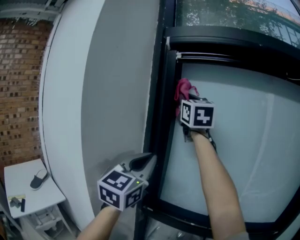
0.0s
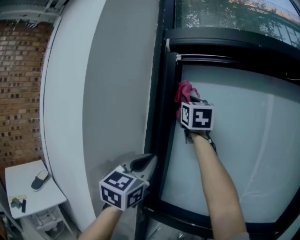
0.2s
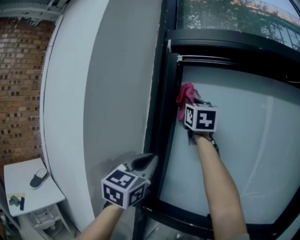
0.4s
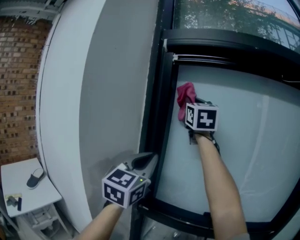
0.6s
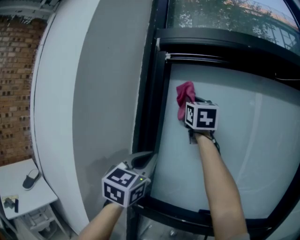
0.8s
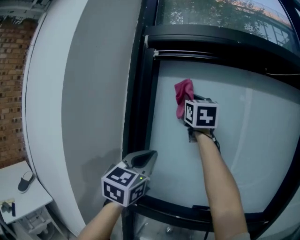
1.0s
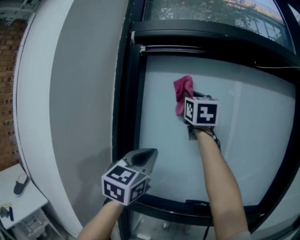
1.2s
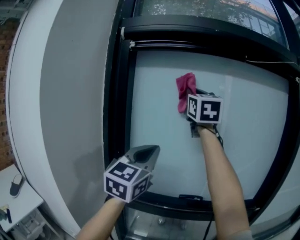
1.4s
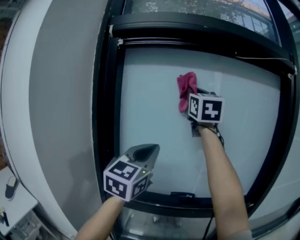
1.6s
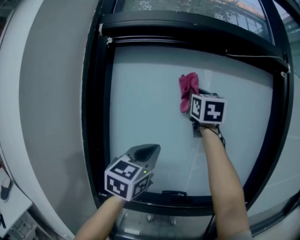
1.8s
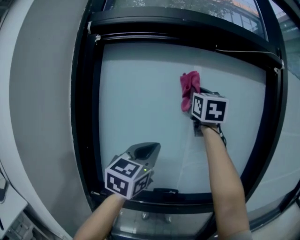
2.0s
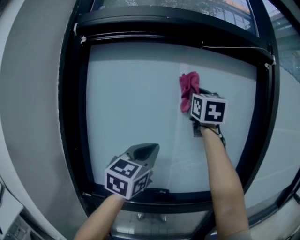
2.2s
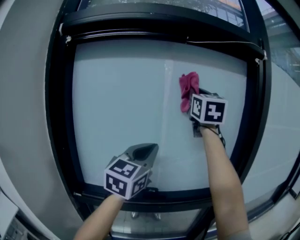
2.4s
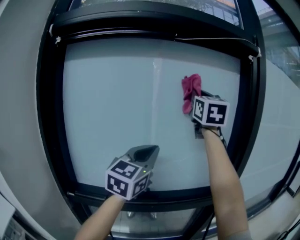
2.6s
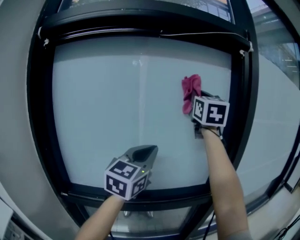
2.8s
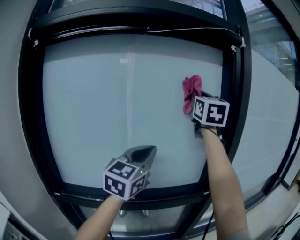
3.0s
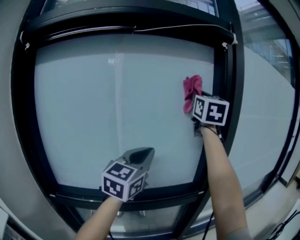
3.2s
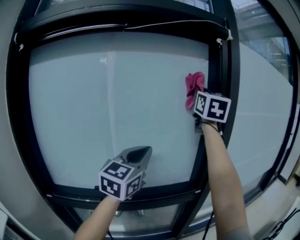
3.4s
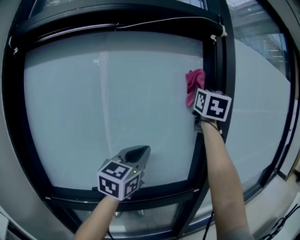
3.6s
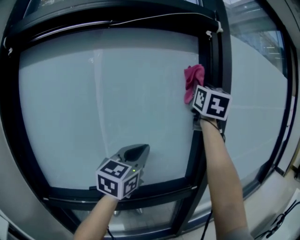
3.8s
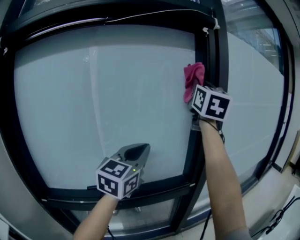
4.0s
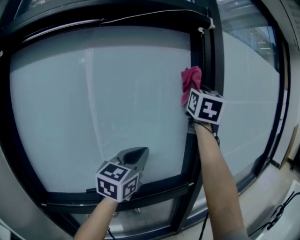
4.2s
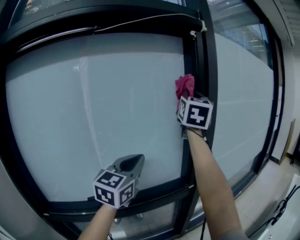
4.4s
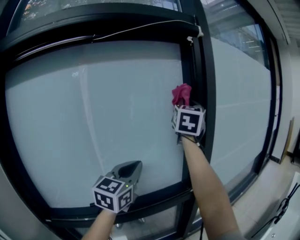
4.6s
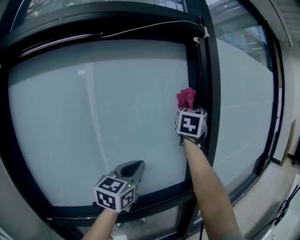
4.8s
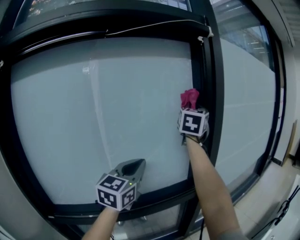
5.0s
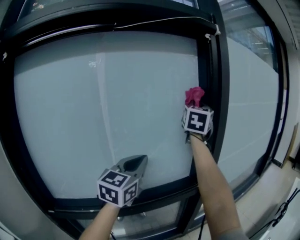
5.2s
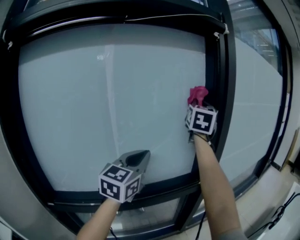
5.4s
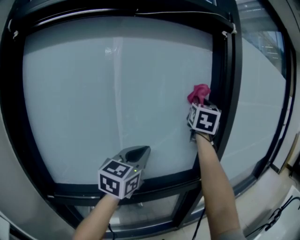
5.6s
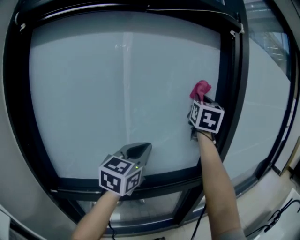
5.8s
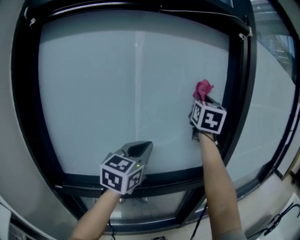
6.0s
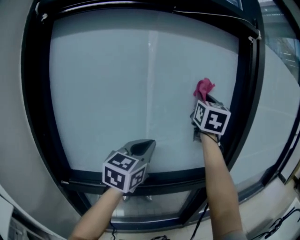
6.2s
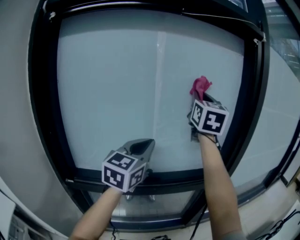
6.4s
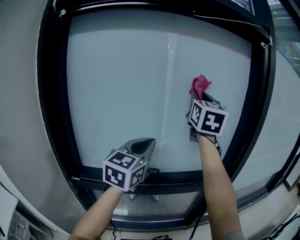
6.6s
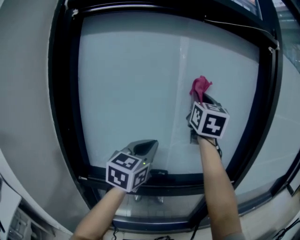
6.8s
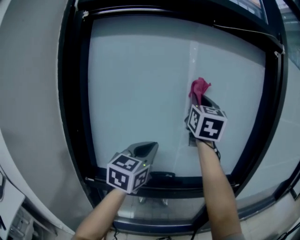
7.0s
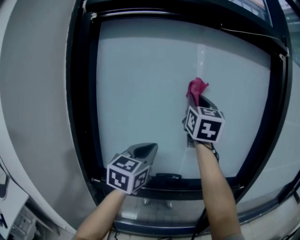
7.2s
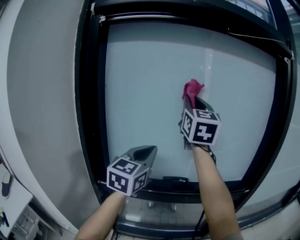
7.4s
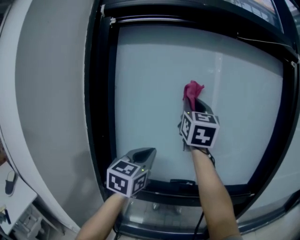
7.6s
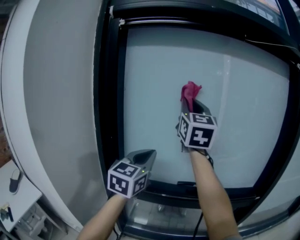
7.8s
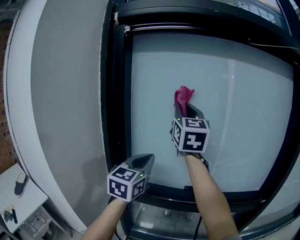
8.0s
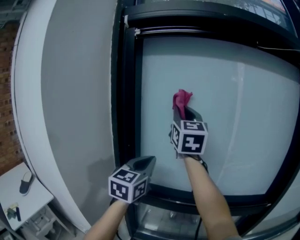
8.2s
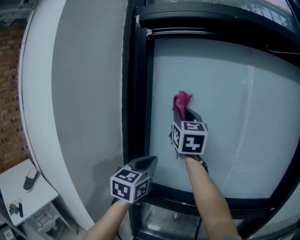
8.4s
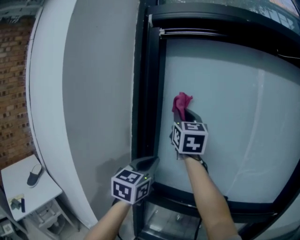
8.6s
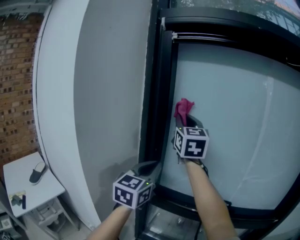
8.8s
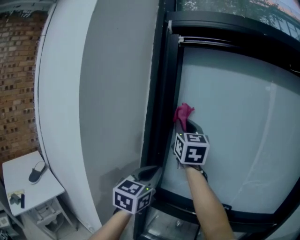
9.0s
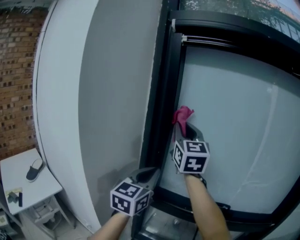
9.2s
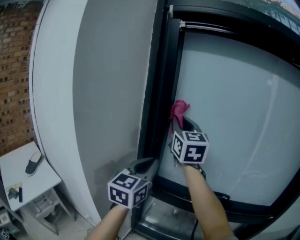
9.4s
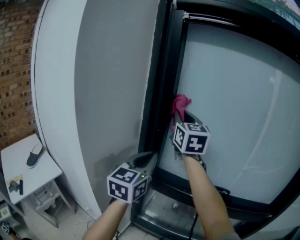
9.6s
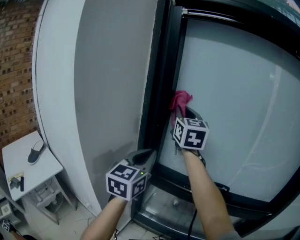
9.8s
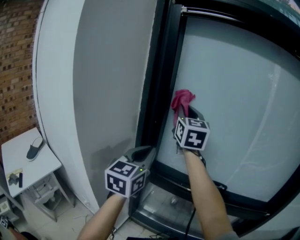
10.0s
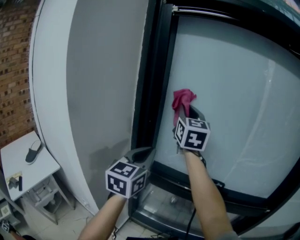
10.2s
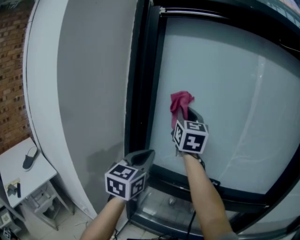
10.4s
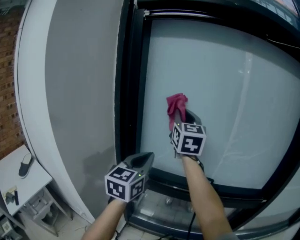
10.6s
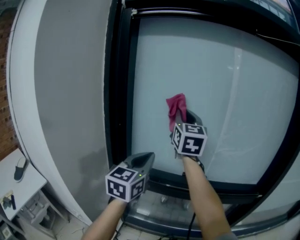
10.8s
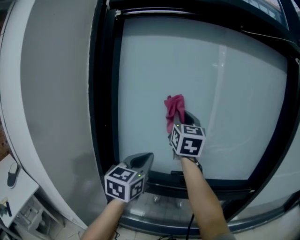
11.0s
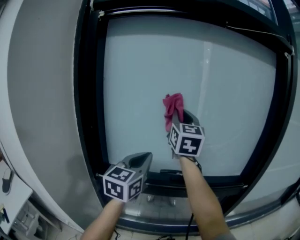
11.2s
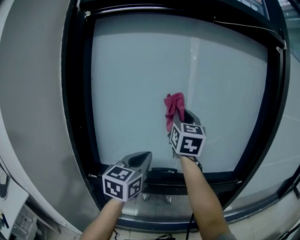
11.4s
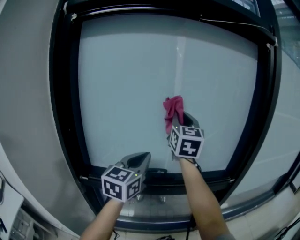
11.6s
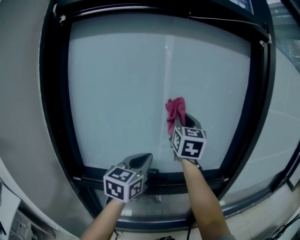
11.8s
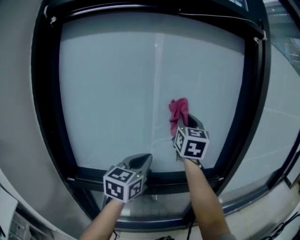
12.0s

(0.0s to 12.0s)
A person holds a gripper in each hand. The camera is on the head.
0.0s - 1.6s: The two grippers go about 20 cm to the right. The right gripper changes its angle by roughly 20 degrees.
1.6s - 3.0s: Both grippers move to the right, roughly 30 cm. The right gripper turns by roughly 20 degrees.
3.0s - 4.4s: The left gripper shifts approximately 5 cm to the right. Meanwhile the right gripper is displaced to the right by approximately 10 cm, and changes its angle by about 20 degrees.
4.4s - 6.0s: The right gripper heads to the left and downward, covering approximately 15 cm. The left gripper shifts approximately 10 cm to the left and backward.
6.0s - 7.6s: The left gripper shifts by some 25 cm, and changes its angle by roughly 20 degrees. The right gripper ends up about 35 cm from where it was, and turns by approximately 30 degrees.
7.6s - 9.0s: Both grippers move to the left, about 20 cm. The right gripper turns by some 20 degrees.
9.0s - 10.4s: The right gripper travels to the right and downward by roughly 10 cm, while the left gripper moves some 5 cm.
10.4s - 12.0s: The left gripper moves roughly 30 cm, and rotates approximately 30 degrees. The right gripper moves some 40 cm, and swivels approximately 30 degrees.

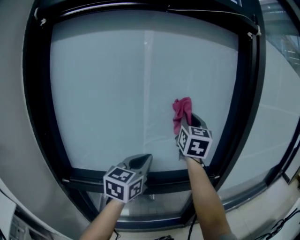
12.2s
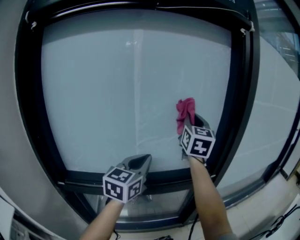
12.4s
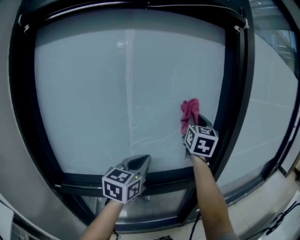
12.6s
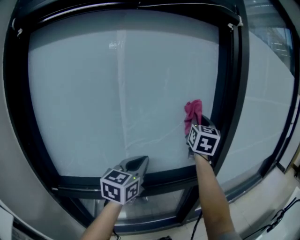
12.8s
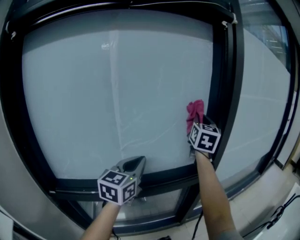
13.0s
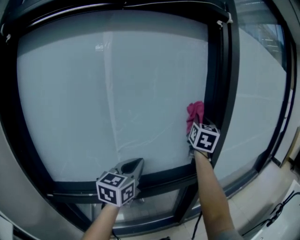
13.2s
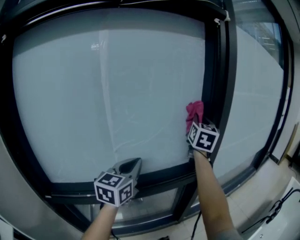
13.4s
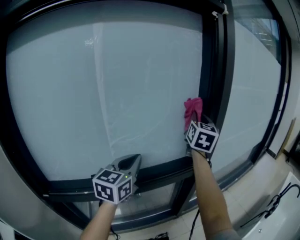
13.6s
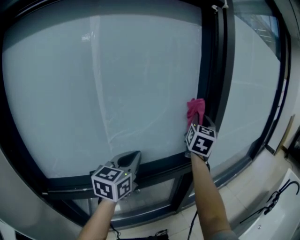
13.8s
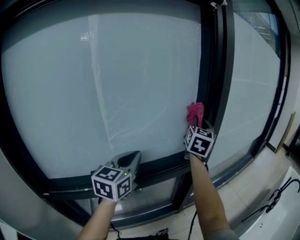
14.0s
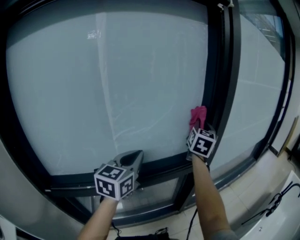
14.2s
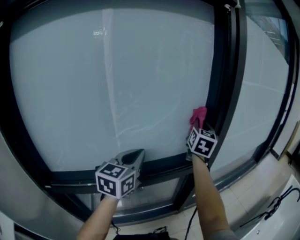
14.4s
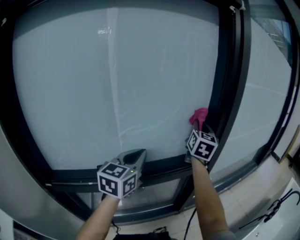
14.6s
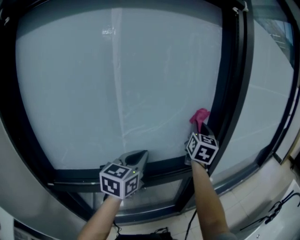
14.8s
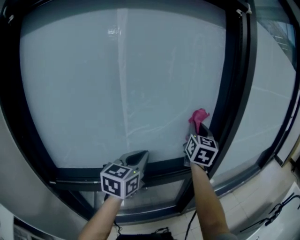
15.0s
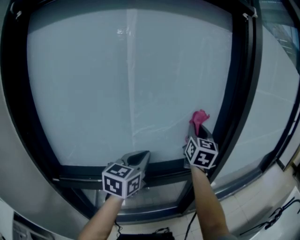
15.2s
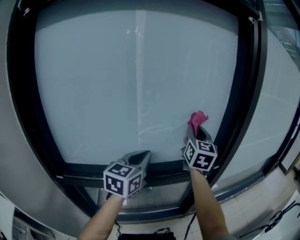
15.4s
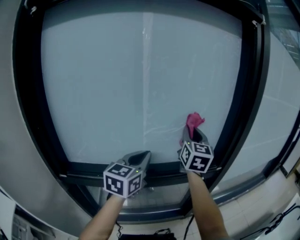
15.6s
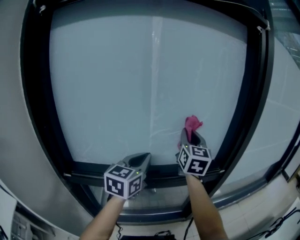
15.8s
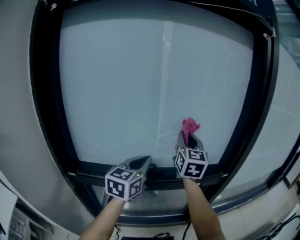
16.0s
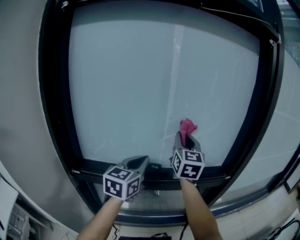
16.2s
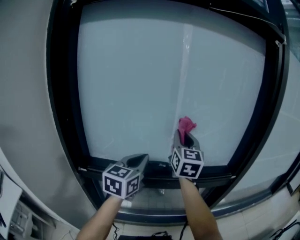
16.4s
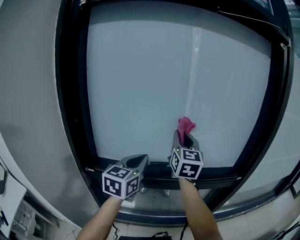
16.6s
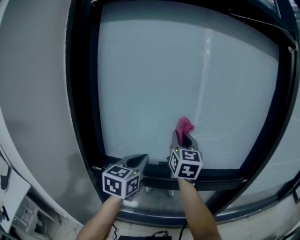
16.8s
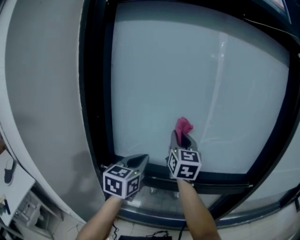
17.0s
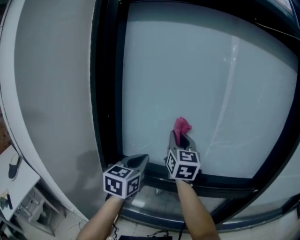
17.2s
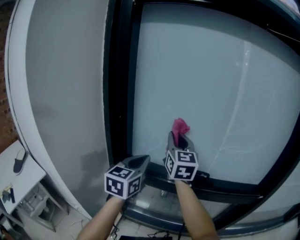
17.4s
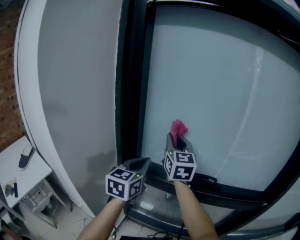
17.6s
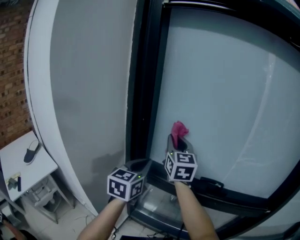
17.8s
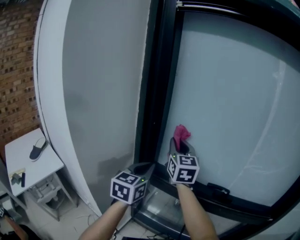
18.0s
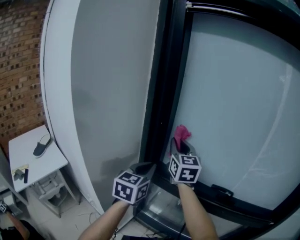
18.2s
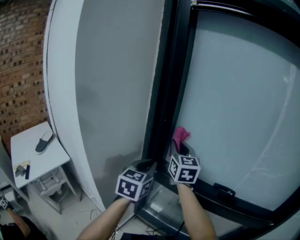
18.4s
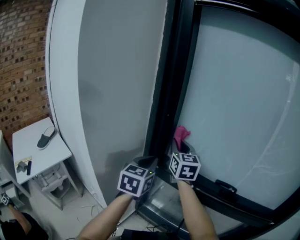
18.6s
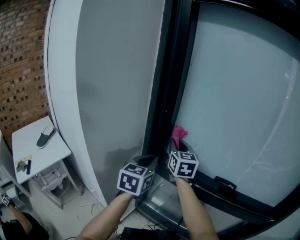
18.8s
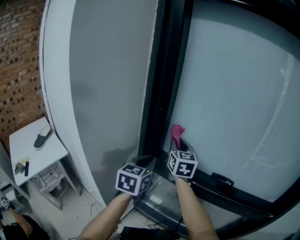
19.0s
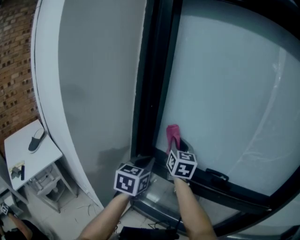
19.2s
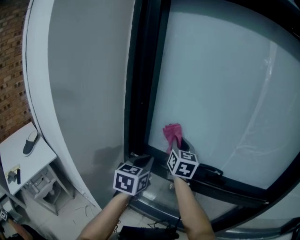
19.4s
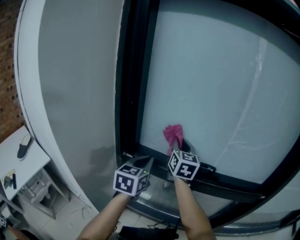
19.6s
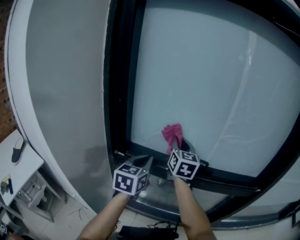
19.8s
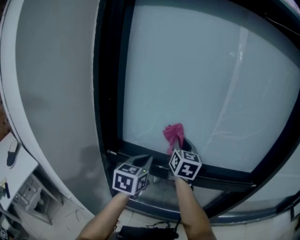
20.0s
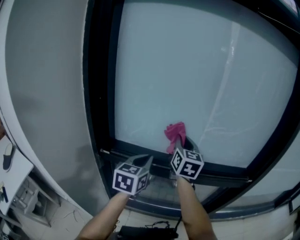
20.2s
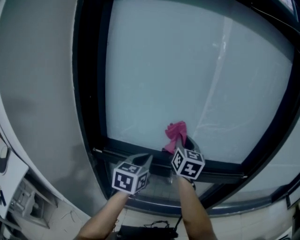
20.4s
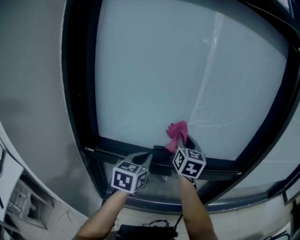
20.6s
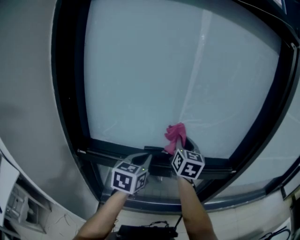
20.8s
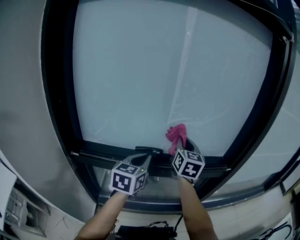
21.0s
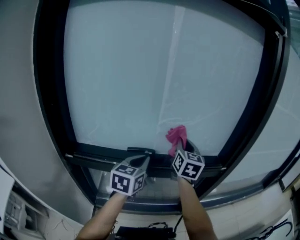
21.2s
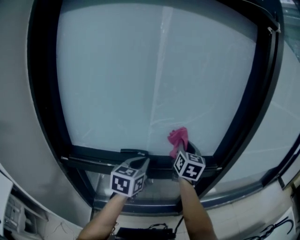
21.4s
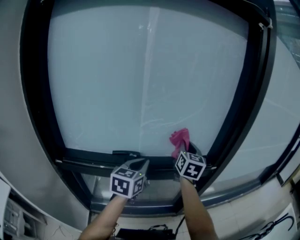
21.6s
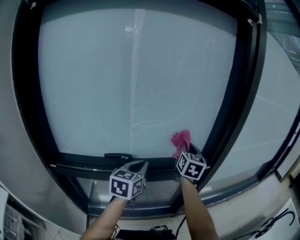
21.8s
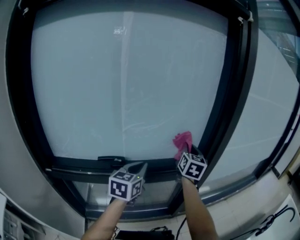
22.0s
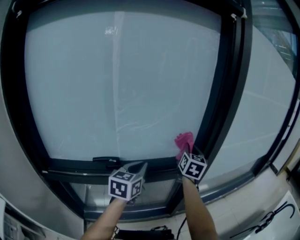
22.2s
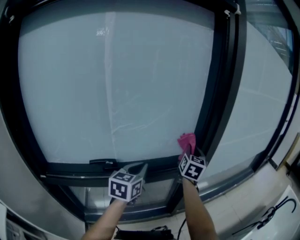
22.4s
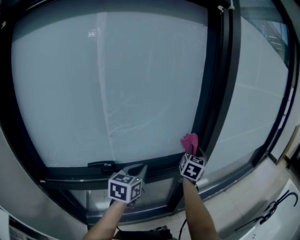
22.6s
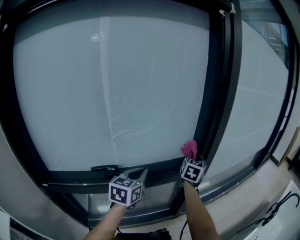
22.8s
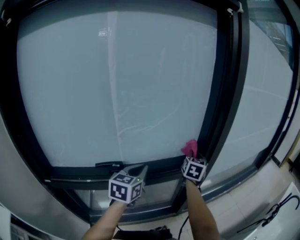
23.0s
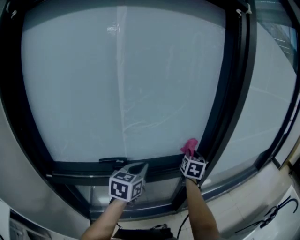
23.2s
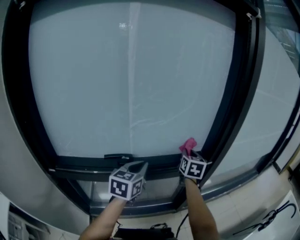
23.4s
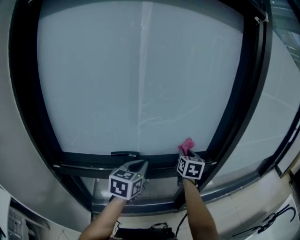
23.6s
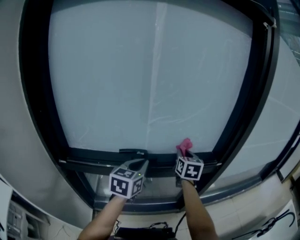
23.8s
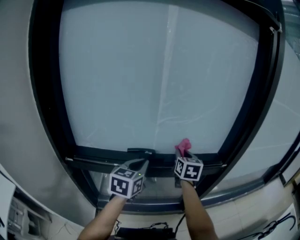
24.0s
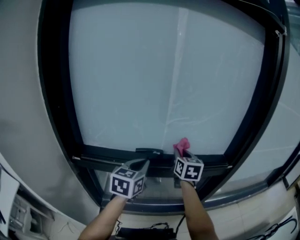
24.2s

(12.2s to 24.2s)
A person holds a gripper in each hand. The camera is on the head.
12.2s - 13.8s: The left gripper travels to the right and forward by approximately 10 cm. Meanwhile the right gripper shifts some 20 cm to the right, and turns by about 30 degrees.
13.8s - 15.2s: The right gripper goes approximately 10 cm to the left.
15.2s - 16.6s: The right gripper travels to the left by some 25 cm, and swivels some 20 degrees. The left gripper moves to the left and backward, about 20 cm.
16.6s - 18.2s: The right gripper changes place by some 35 cm, and changes its angle by approximately 40 degrees. The left gripper ends up roughly 25 cm from where it was, and changes its angle by some 30 degrees.
18.2s - 19.8s: Both grippers travel together to the right, some 15 cm. The right gripper changes its angle by roughly 20 degrees.
19.8s - 21.2s: The two grippers go approximately 25 cm to the right. The right gripper swivels roughly 20 degrees.
21.2s - 22.6s: The right gripper travels to the right by some 25 cm, and rotates some 30 degrees. The left gripper shifts approximately 15 cm to the right and forward.
22.6s - 24.2s: The left gripper moves some 20 cm; the right gripper changes place by about 30 cm, and changes its angle by about 40 degrees.
